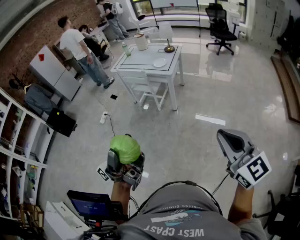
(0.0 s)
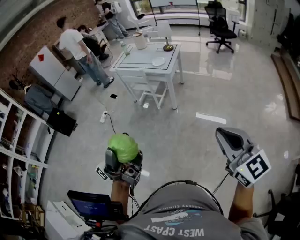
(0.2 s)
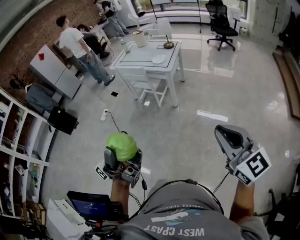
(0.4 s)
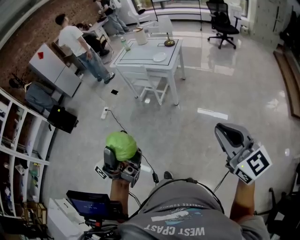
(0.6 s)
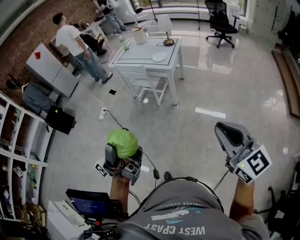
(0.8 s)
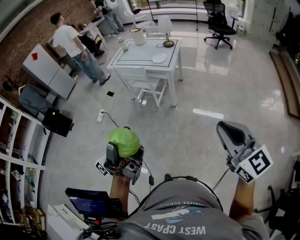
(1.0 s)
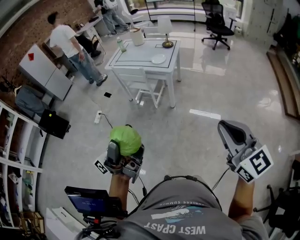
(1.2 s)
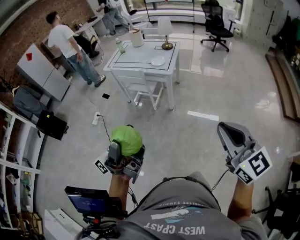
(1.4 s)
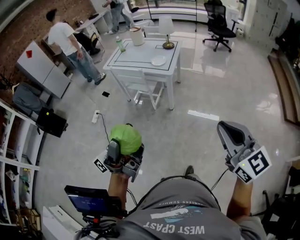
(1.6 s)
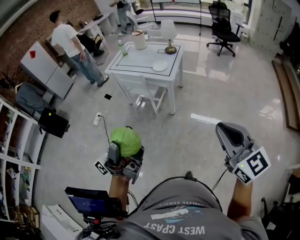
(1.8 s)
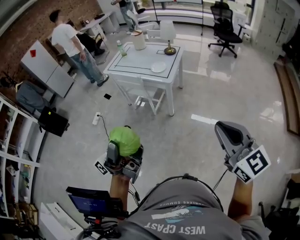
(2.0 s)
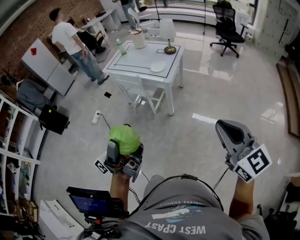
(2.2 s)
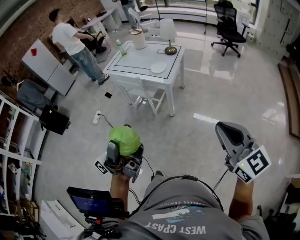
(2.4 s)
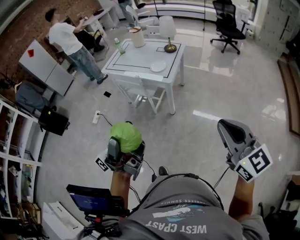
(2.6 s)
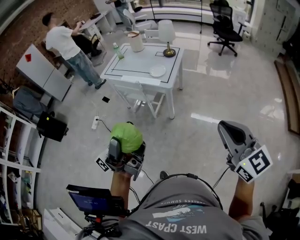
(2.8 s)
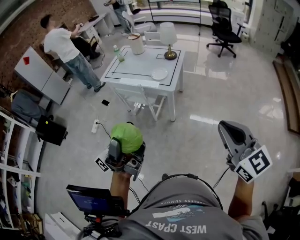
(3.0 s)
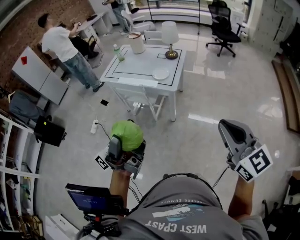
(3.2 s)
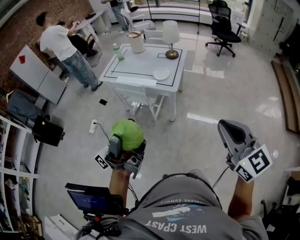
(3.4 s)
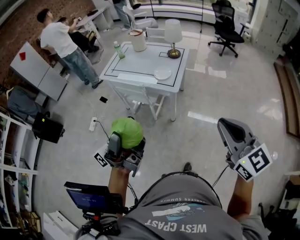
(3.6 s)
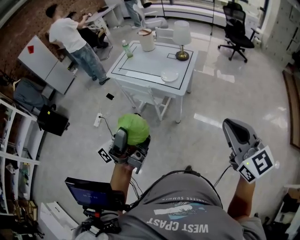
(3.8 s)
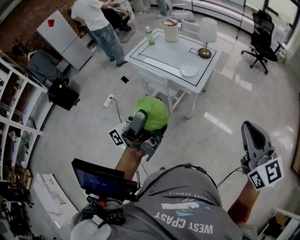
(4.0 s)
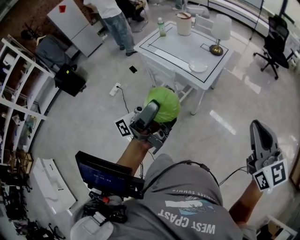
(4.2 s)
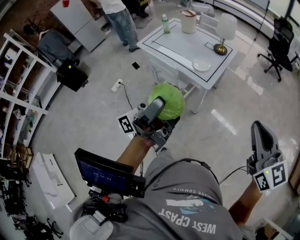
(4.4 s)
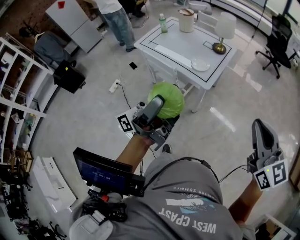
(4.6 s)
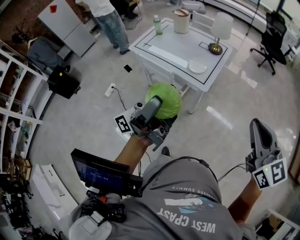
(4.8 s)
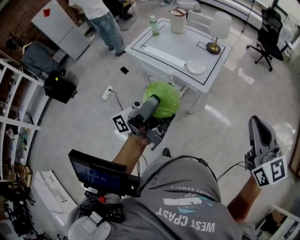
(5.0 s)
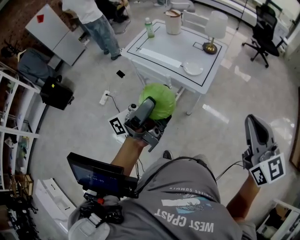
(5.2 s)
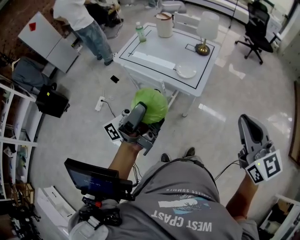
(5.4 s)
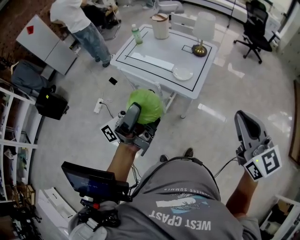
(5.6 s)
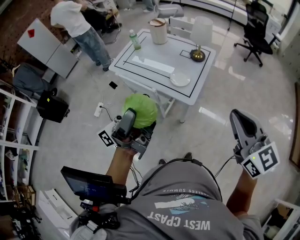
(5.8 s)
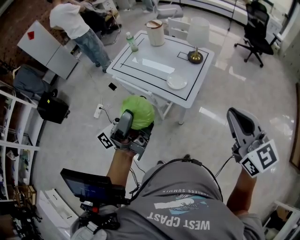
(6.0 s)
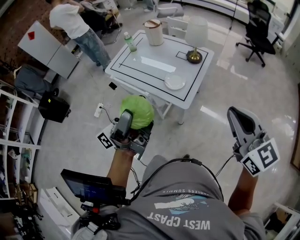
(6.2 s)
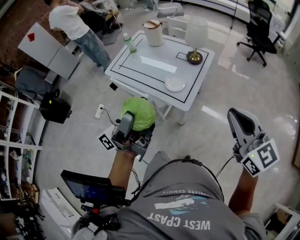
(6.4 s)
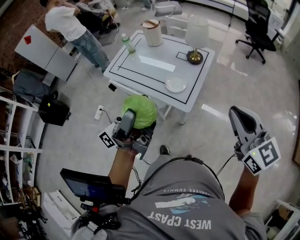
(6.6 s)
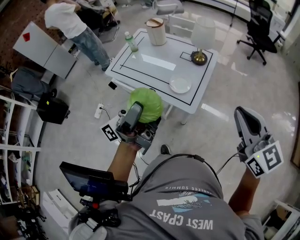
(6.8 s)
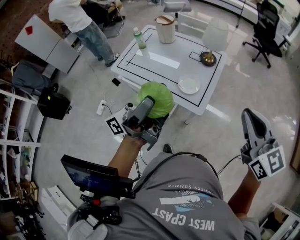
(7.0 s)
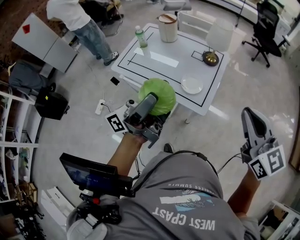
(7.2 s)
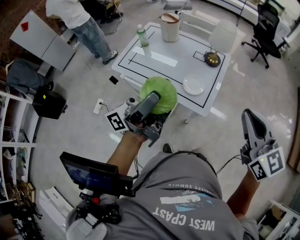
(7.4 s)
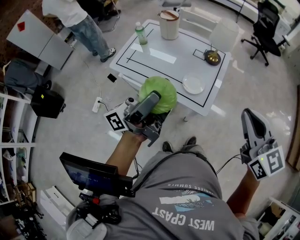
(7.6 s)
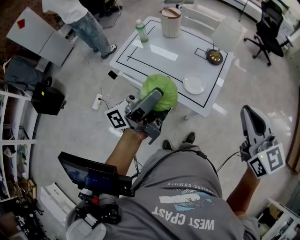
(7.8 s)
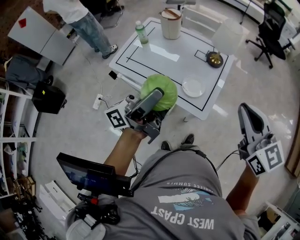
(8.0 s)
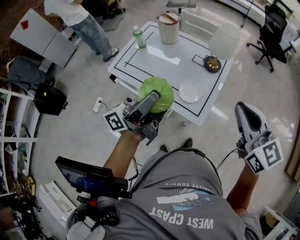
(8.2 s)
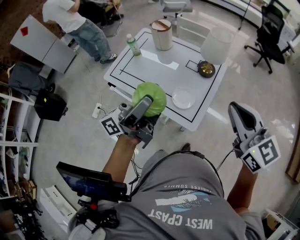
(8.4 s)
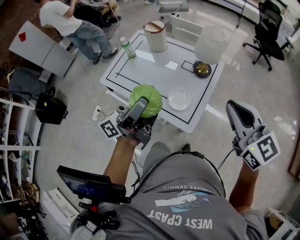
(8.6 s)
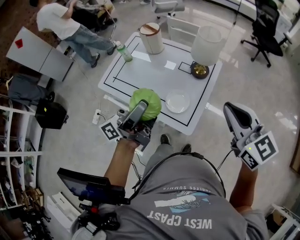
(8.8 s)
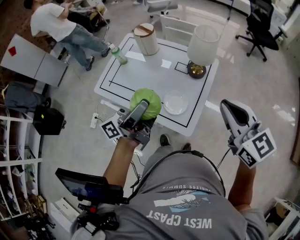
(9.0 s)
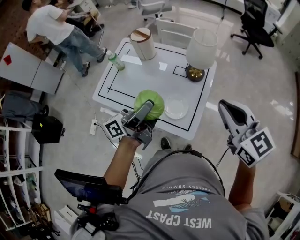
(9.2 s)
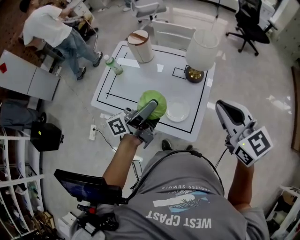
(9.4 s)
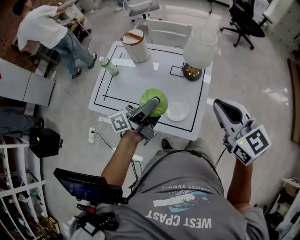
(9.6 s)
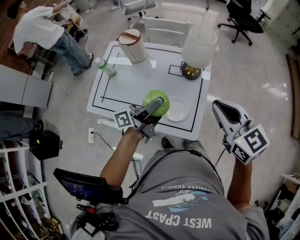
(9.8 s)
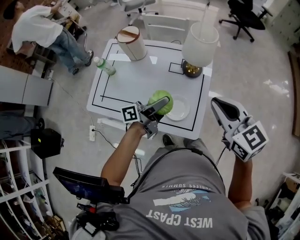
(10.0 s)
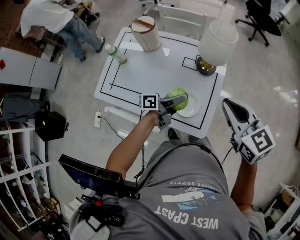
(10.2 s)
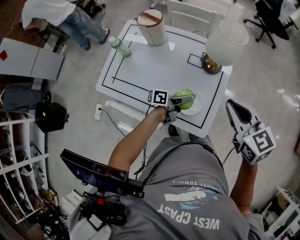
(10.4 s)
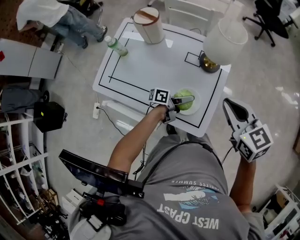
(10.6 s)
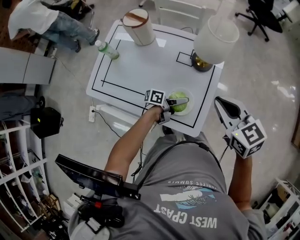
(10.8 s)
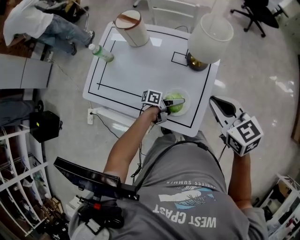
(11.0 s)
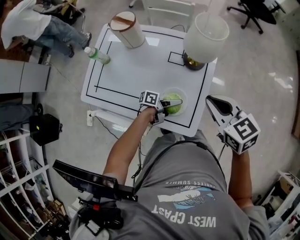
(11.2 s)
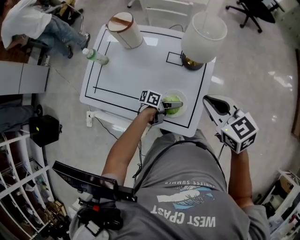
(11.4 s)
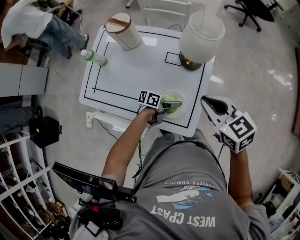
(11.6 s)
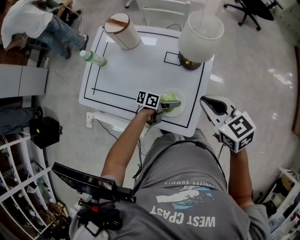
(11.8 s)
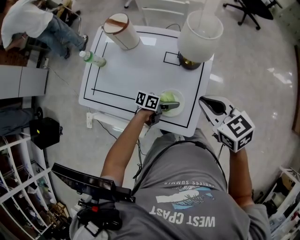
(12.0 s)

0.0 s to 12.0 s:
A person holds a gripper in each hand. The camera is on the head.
0.0 to 1.6 s: The grippers both shift forward by about 15 cm.
1.6 to 3.0 s: Both grippers move forward, roughly 15 cm.
3.0 to 4.4 s: The grippers both shift forward by about 15 cm.
4.4 to 6.0 s: The two grippers go roughly 20 cm forward.
6.0 to 7.6 s: Both grippers move forward and to the left, roughly 15 cm.
7.6 to 9.0 s: The left gripper is displaced forward, to the right and downward by roughly 20 cm. The right gripper is displaced forward by roughly 15 cm.
9.0 to 10.4 s: The right gripper moves downward, forward and to the left, approximately 15 cm, while the left gripper goes approximately 30 cm downward, and angles its fingers downward, by some 30 degrees.
10.4 to 12.0 s: The grippers both shift downward by some 10 cm. The left gripper swivels roughly 30 degrees.

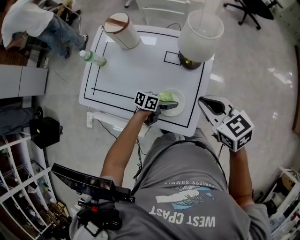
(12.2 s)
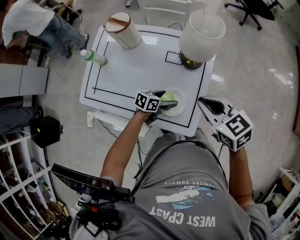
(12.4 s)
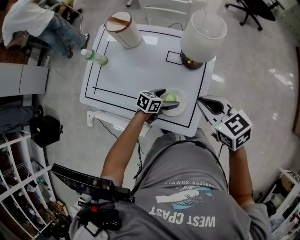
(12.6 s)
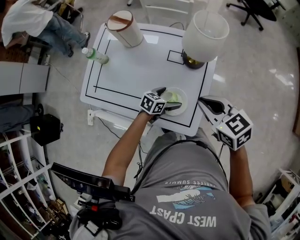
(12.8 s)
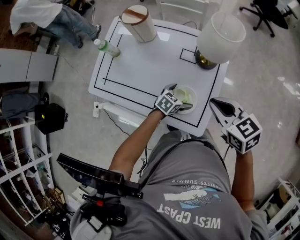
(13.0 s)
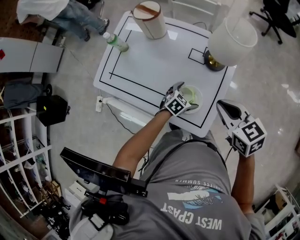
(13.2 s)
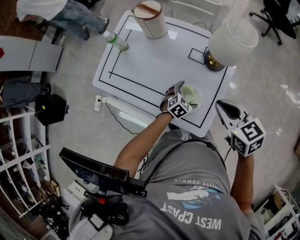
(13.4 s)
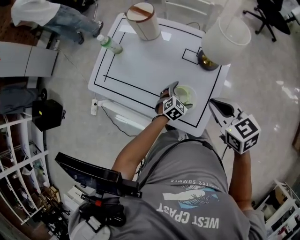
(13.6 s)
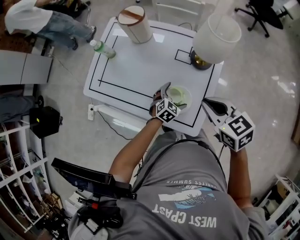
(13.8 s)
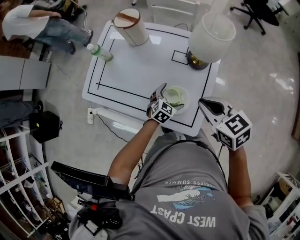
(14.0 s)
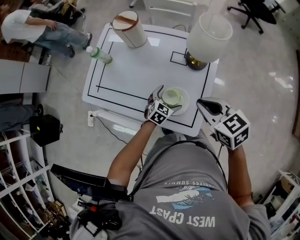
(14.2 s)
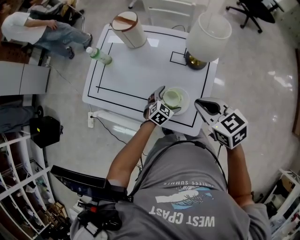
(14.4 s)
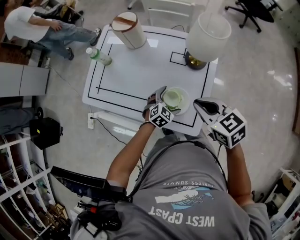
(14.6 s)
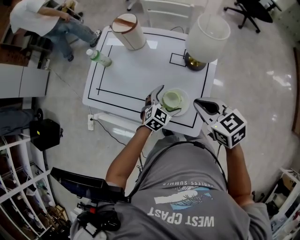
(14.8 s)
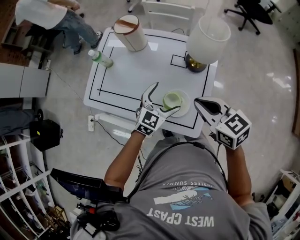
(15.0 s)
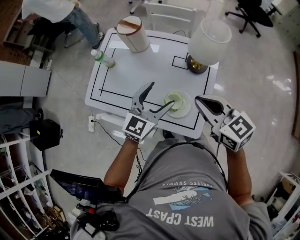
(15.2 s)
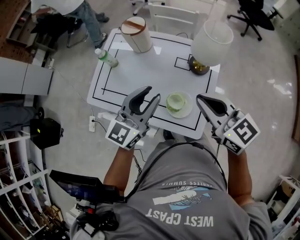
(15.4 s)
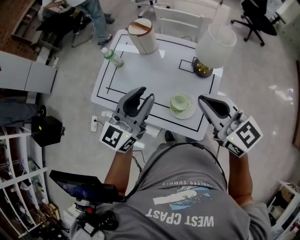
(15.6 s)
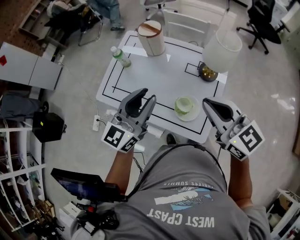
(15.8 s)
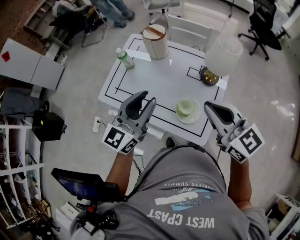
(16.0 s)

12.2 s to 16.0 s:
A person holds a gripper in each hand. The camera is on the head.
12.2 to 13.4 s: The left gripper swivels about 50 degrees.
13.4 to 14.8 s: The left gripper shifts some 10 cm upward.
14.8 to 16.0 s: The right gripper travels upward by about 15 cm, and turns by approximately 30 degrees, while the left gripper goes some 35 cm upward and to the left, tips its fingers upward by approximately 40 degrees, and closes its fingers.

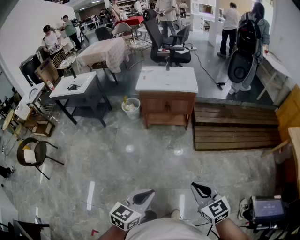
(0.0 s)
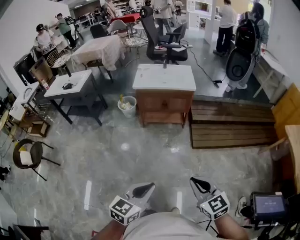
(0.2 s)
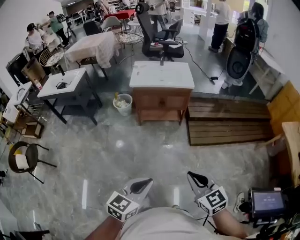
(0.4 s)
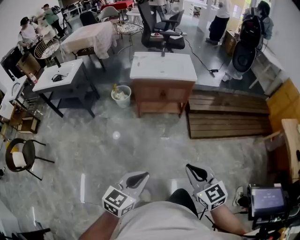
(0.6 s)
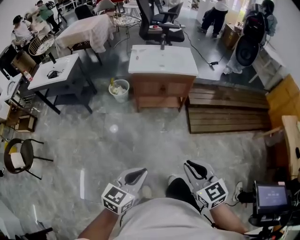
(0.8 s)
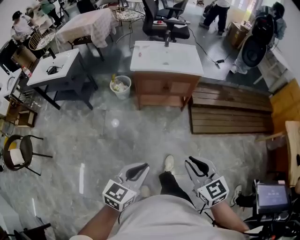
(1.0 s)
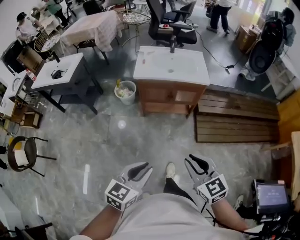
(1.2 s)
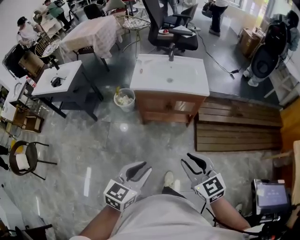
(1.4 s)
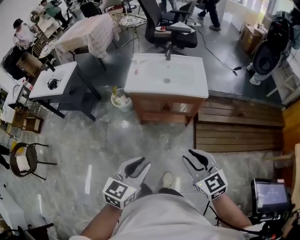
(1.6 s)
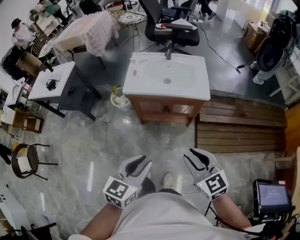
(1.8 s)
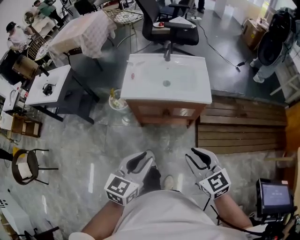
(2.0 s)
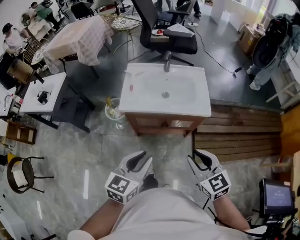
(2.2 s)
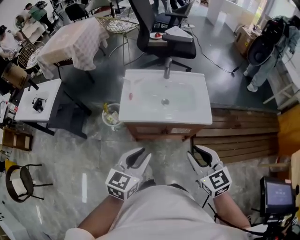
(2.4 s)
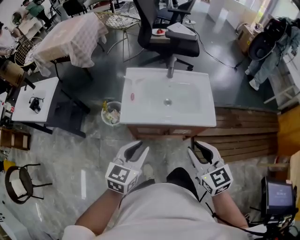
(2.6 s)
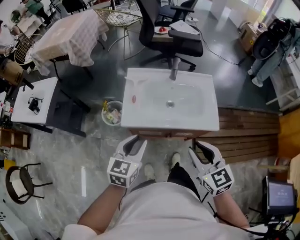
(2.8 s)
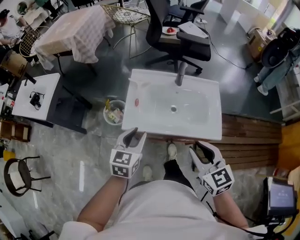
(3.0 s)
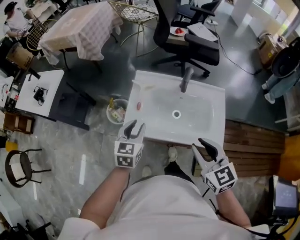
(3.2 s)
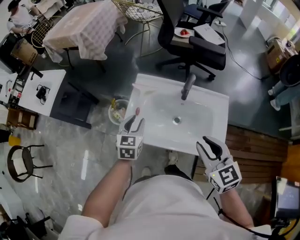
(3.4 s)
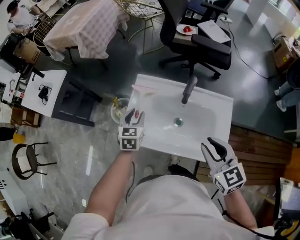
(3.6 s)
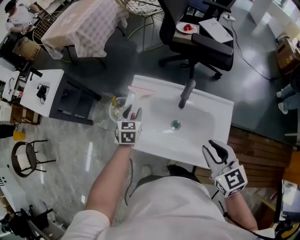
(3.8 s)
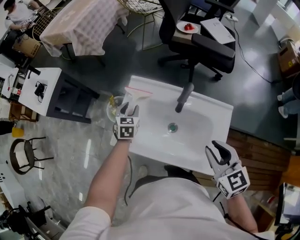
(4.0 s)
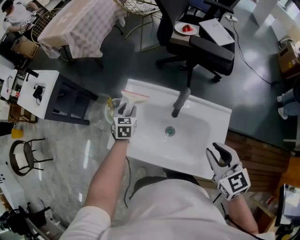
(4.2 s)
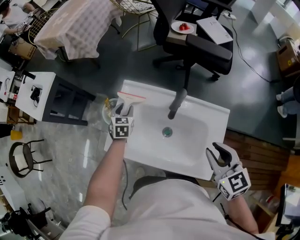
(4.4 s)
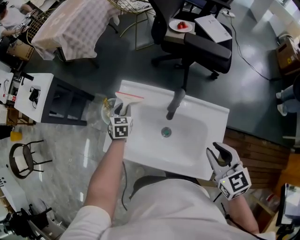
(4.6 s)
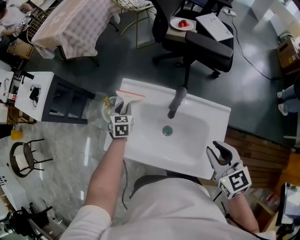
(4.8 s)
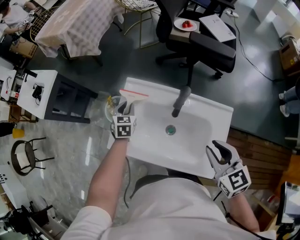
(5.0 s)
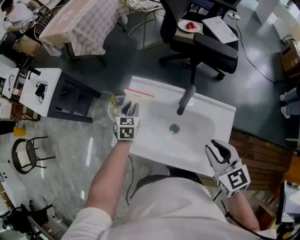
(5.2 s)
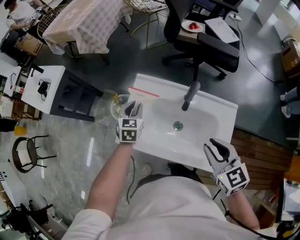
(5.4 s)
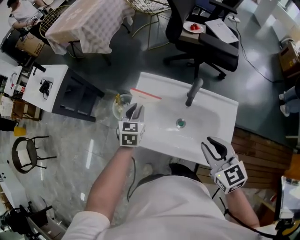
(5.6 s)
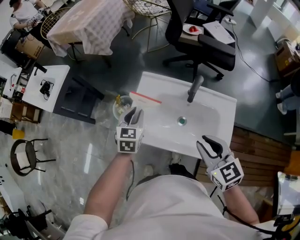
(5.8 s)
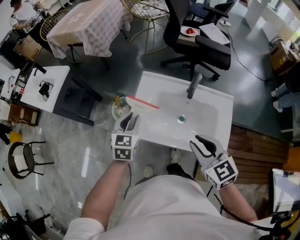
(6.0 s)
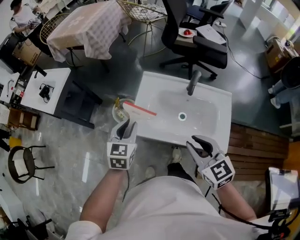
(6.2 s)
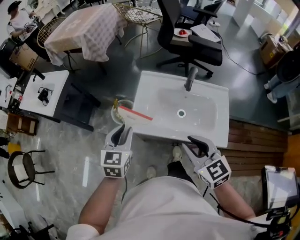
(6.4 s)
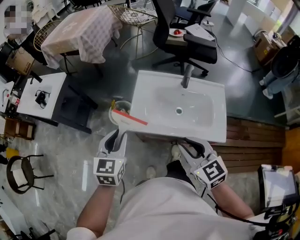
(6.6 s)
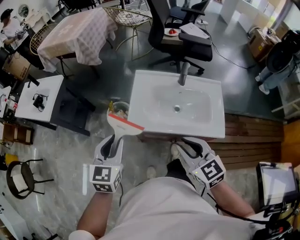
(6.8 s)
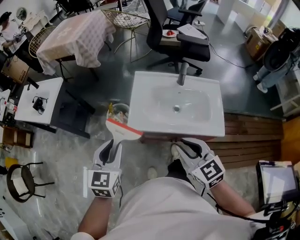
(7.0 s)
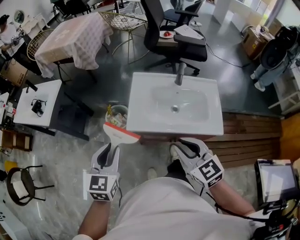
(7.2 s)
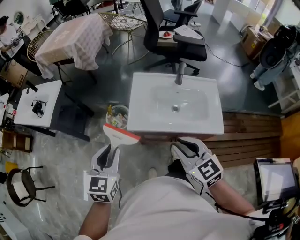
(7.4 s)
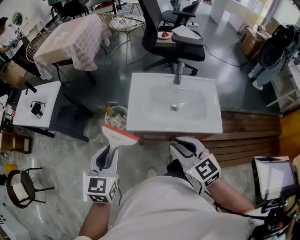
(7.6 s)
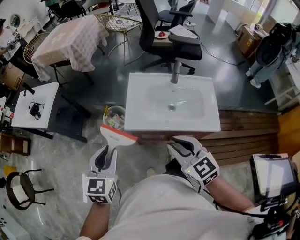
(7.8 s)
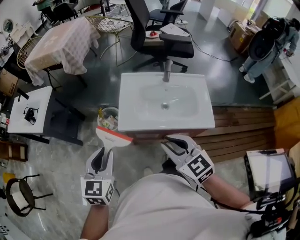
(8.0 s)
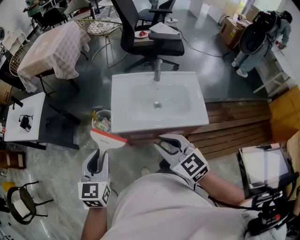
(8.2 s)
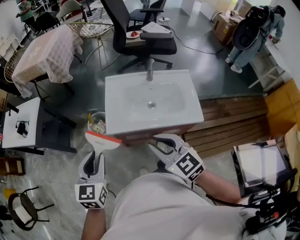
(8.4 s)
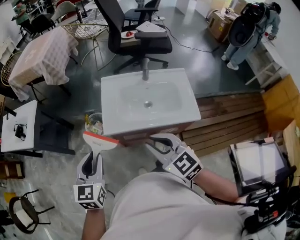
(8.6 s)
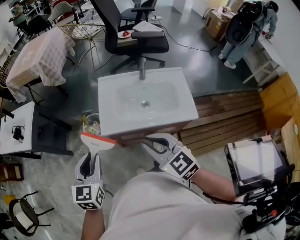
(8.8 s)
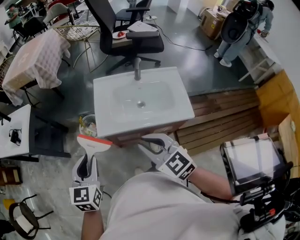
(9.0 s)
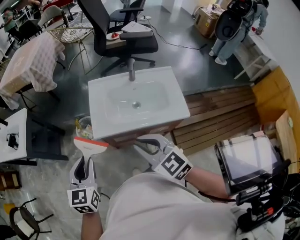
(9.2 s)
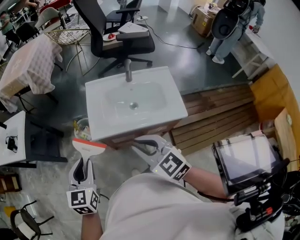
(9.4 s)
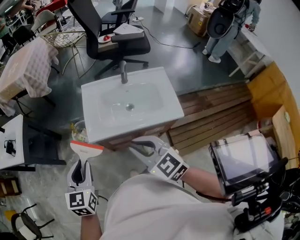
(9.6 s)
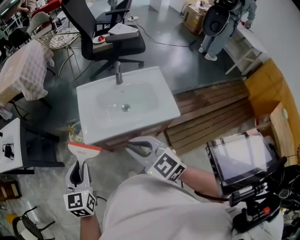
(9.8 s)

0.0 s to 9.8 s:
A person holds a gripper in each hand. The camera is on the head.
0.0 to 1.4 s: The grippers both shift forward by roughly 35 cm. The left gripper opens up. Meanwhile the right gripper opens.
1.4 to 2.8 s: The pair of grippers is taken forward, roughly 40 cm.
2.8 to 4.2 s: The right gripper changes place by approximately 30 cm; the left gripper moves some 40 cm, and rotates about 40 degrees.
4.2 to 5.6 s: The left gripper heads upward and backward, covering some 10 cm. The right gripper heads to the left, covering some 10 cm.
5.6 to 7.0 s: The left gripper goes about 35 cm backward, to the left and upward. The right gripper is displaced to the left and backward by approximately 25 cm.
7.0 to 9.8 s: The grippers stay close to where they were, moving slightly.
